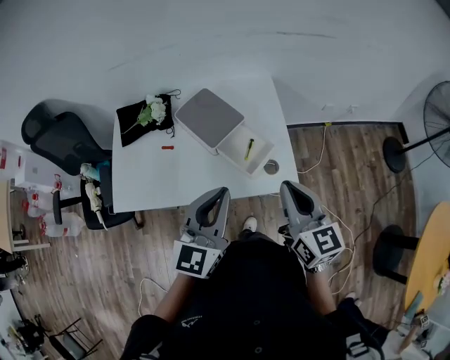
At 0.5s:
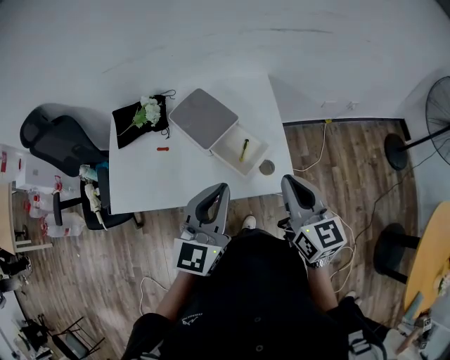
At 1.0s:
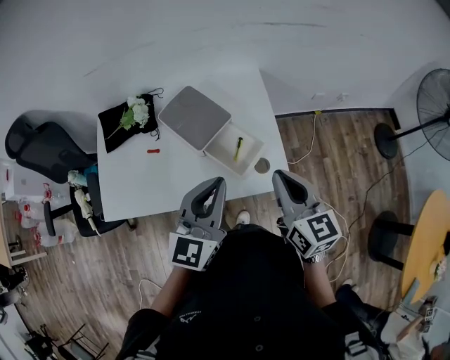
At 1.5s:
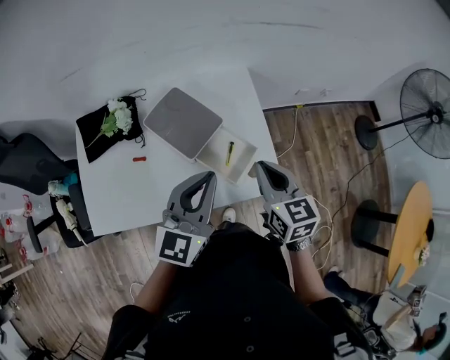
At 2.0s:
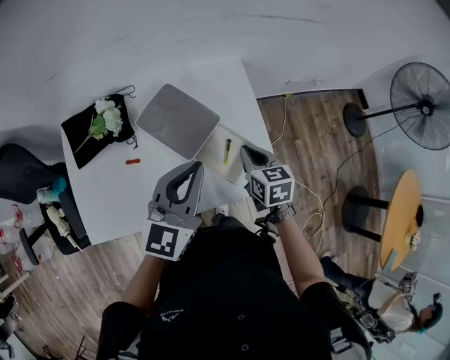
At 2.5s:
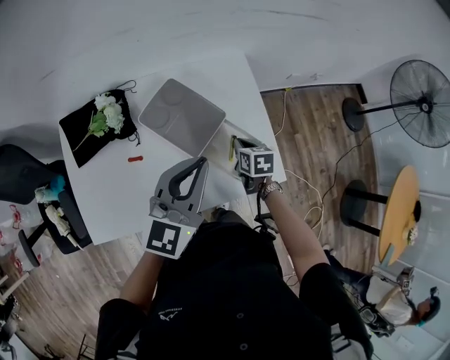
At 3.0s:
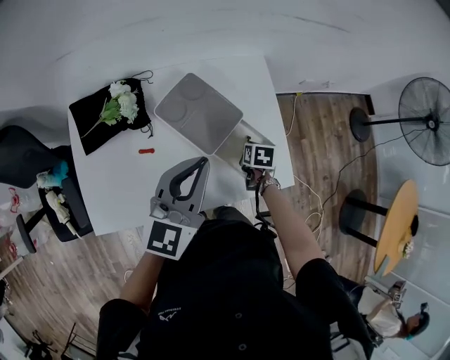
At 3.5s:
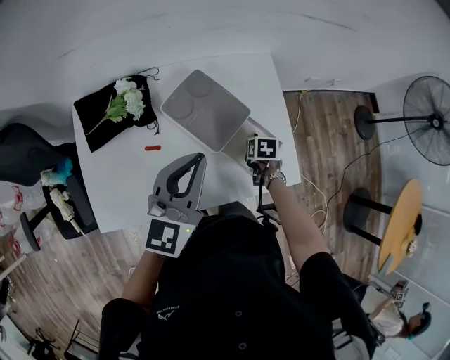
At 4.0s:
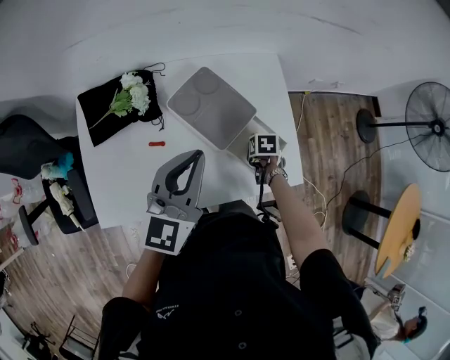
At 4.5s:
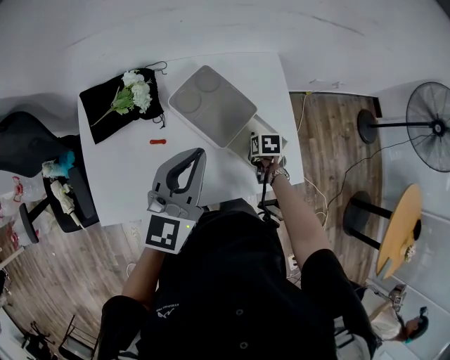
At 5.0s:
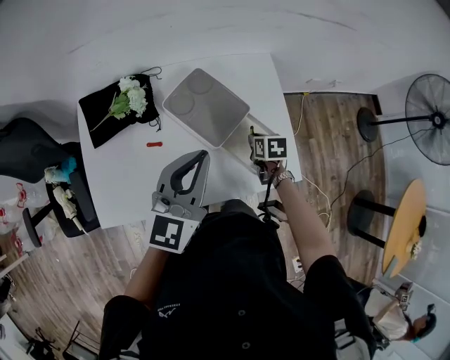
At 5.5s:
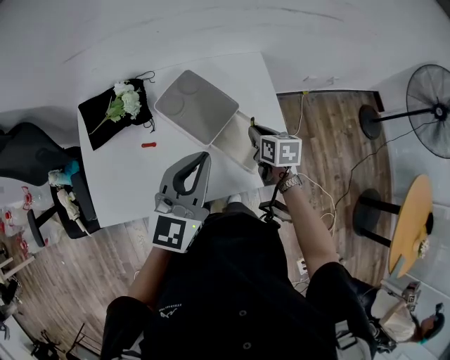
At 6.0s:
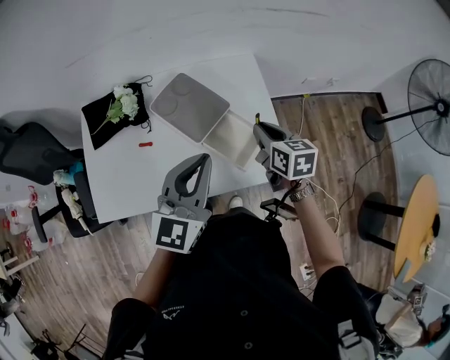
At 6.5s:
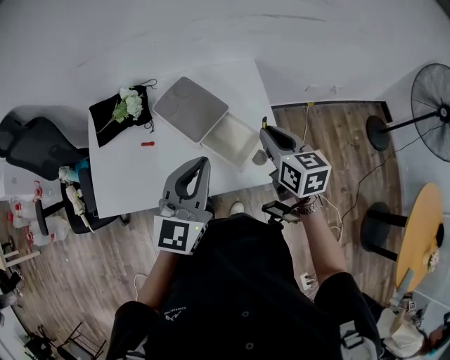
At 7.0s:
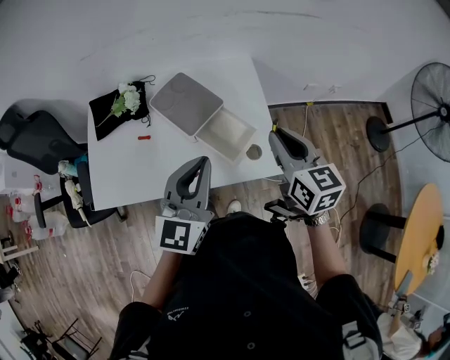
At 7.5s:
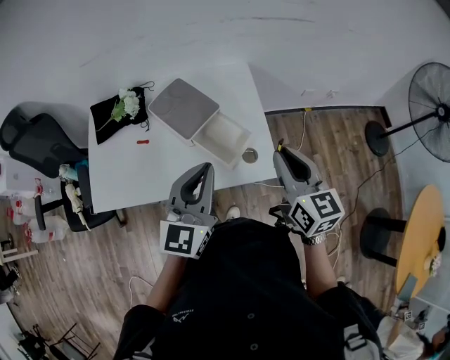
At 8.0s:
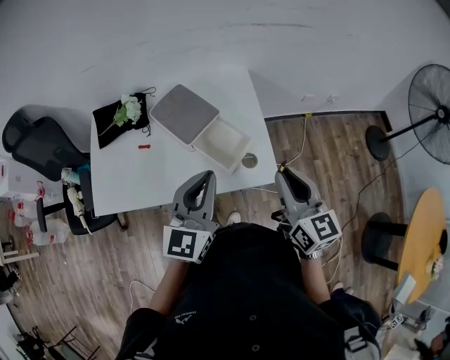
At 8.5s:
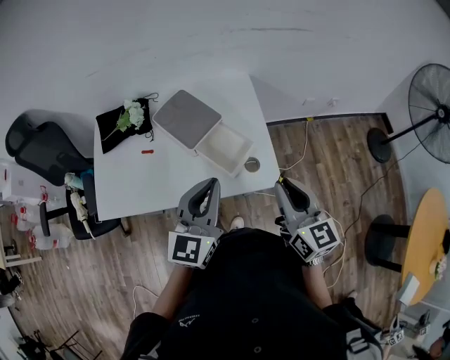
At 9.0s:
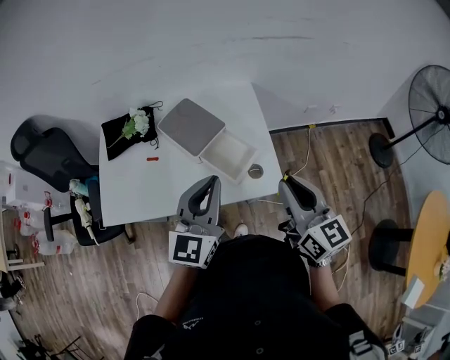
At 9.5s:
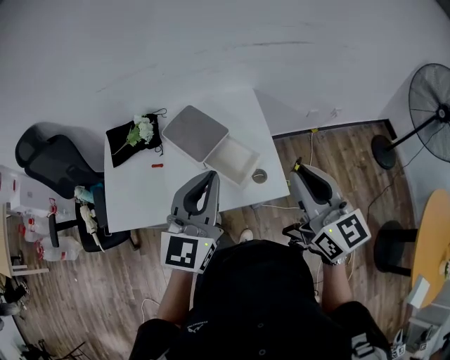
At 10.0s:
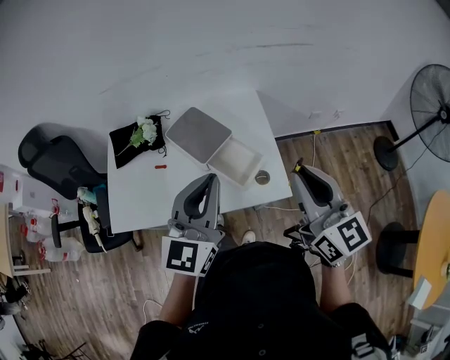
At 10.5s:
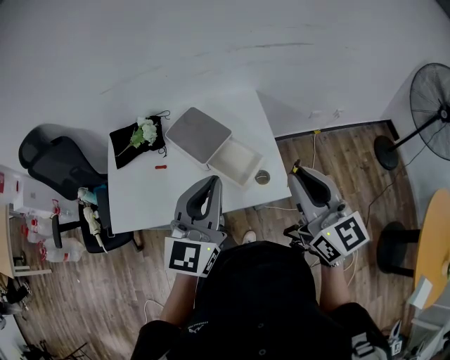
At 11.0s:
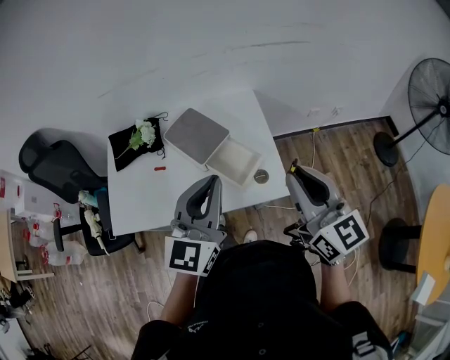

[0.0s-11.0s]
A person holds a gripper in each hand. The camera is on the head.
0.0s to 2.0s: The right gripper is displaced forward and downward by roughly 25 cm, and angles its fingers downward, by approximately 30 degrees; the left gripper goes some 20 cm forward.
2.0s to 3.5s: The left gripper moves to the left, roughly 10 cm, while the right gripper goes about 20 cm downward, tips its fingers downward by about 30 degrees, and opens up.
3.5s to 5.5s: The left gripper changes place by some 5 cm; the right gripper moves upward, some 15 cm, and turns by roughly 30 degrees.
5.5s to 7.5s: The right gripper goes roughly 30 cm upward, backward and to the right, and angles its fingers upward, by approximately 30 degrees. The left gripper moves backward and to the right, about 15 cm.
7.5s to 9.0s: The right gripper changes place by roughly 5 cm.
9.0s to 11.0s: The grippers both shift upward by roughly 5 cm.

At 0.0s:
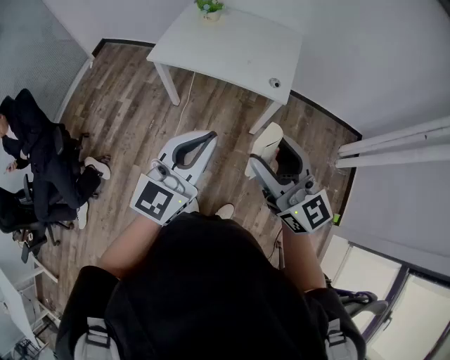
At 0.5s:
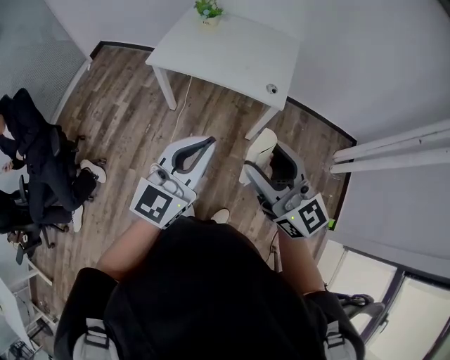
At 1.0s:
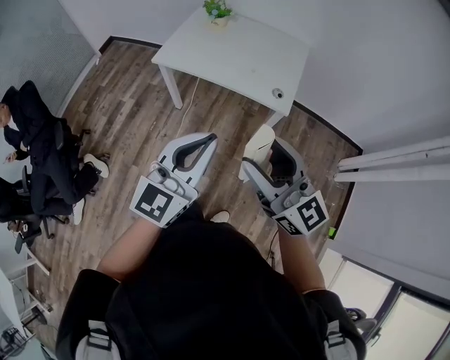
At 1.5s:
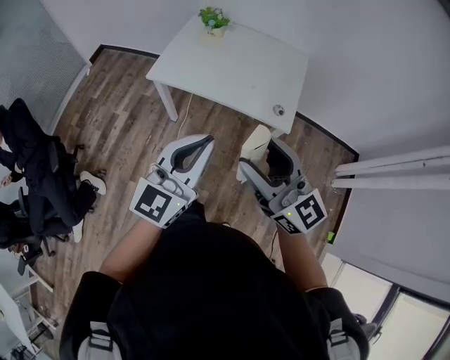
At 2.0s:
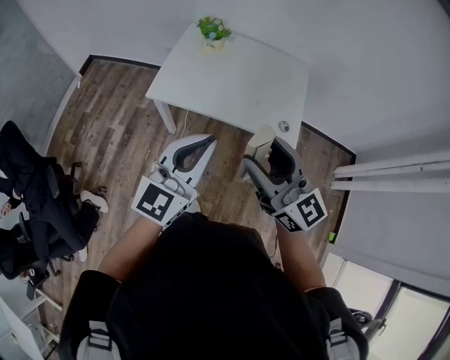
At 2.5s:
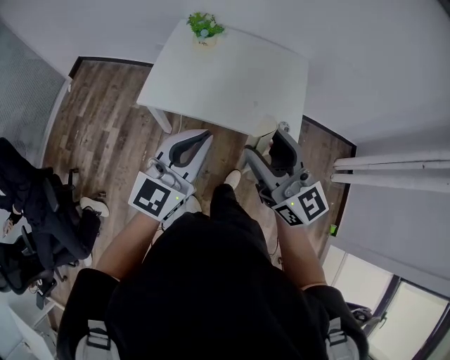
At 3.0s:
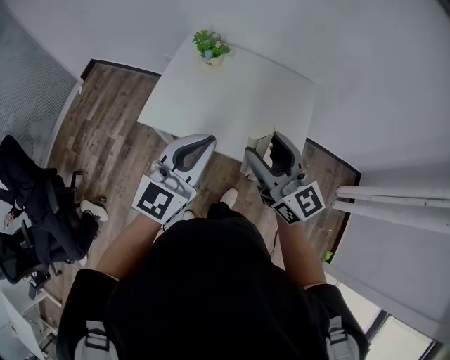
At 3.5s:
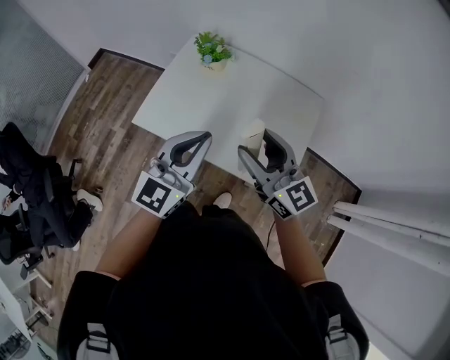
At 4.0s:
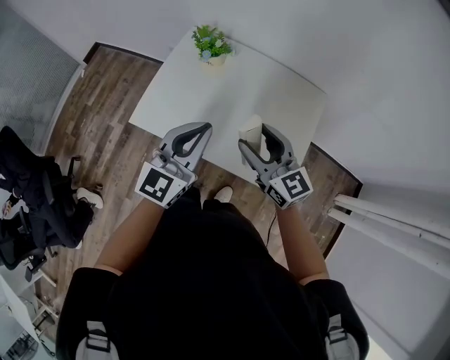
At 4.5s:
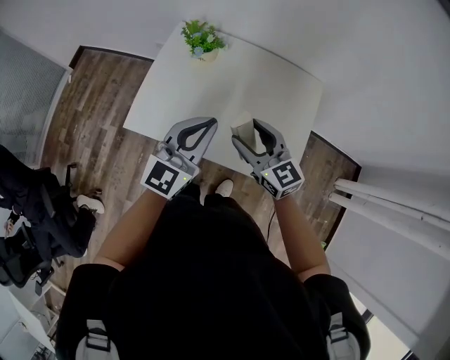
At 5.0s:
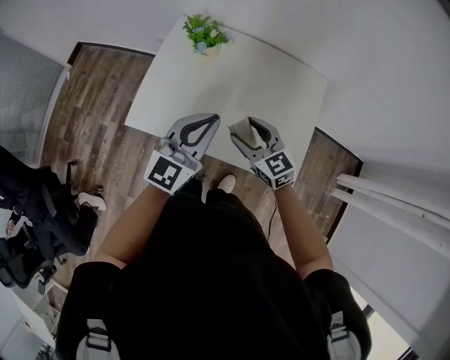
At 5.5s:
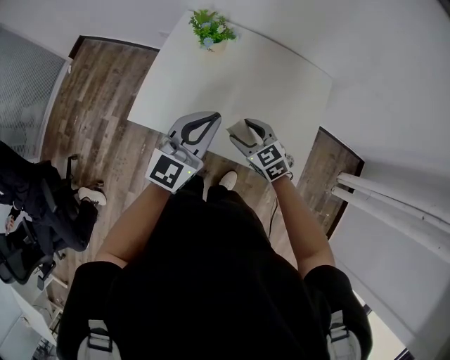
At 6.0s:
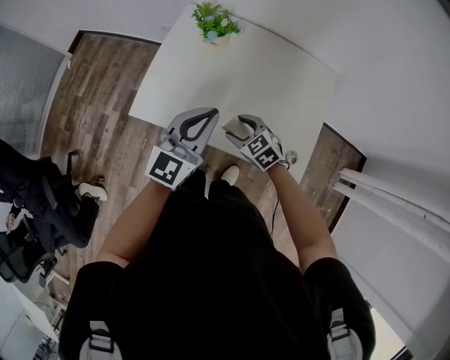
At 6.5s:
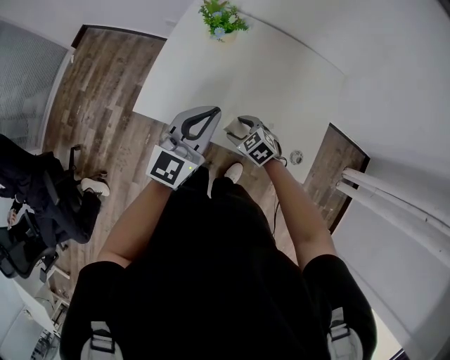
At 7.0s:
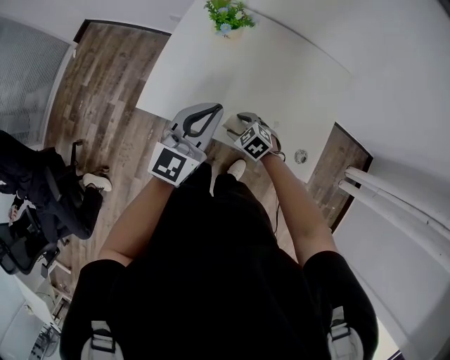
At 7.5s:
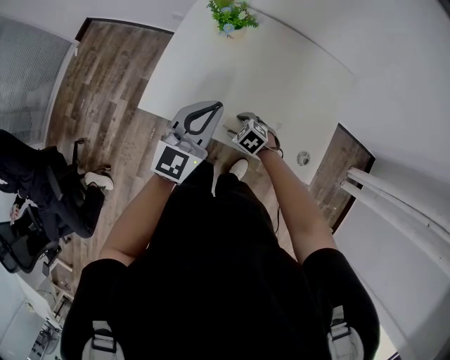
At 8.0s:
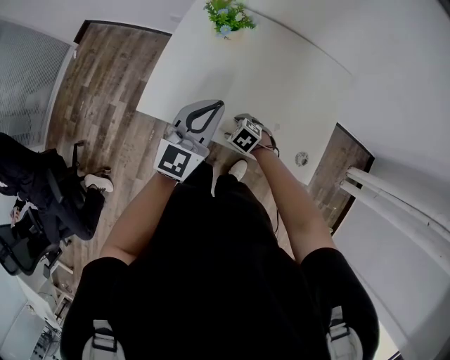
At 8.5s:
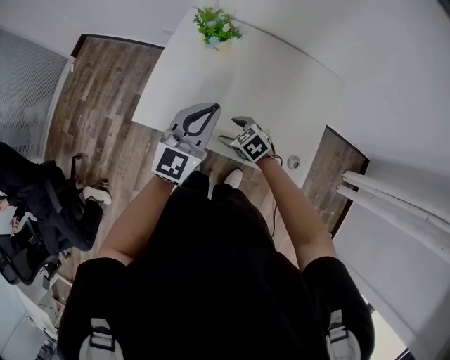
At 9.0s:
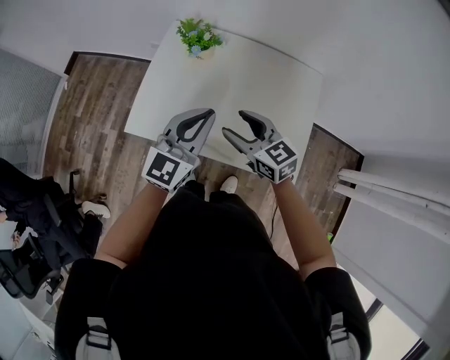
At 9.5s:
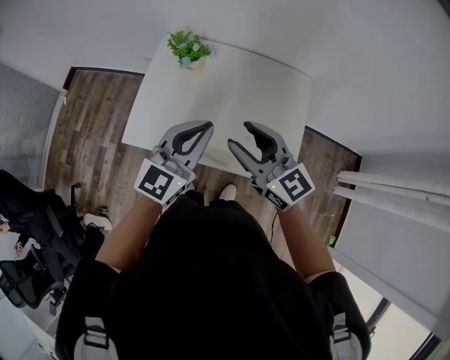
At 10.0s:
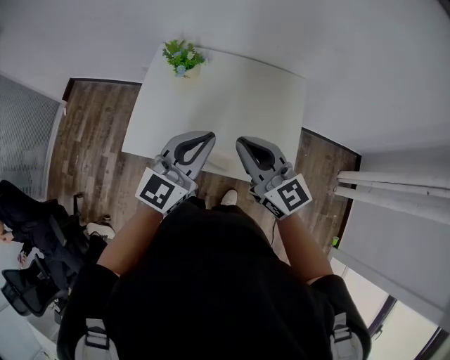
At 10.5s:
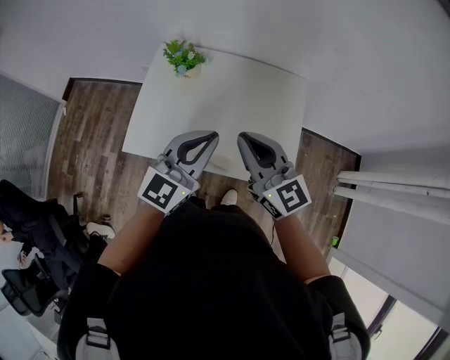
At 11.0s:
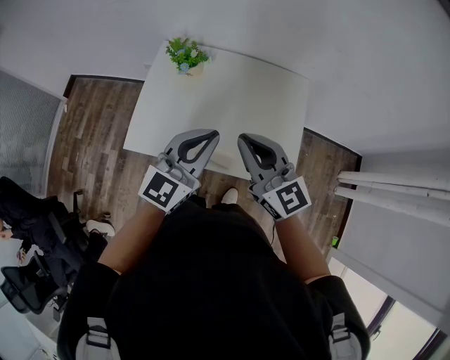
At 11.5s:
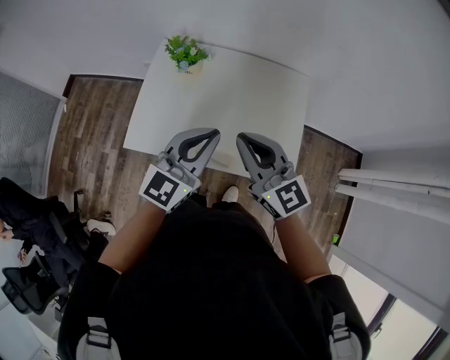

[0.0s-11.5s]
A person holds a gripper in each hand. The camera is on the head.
0.0s to 2.0s: The grippers both shift forward and to the left by roughly 25 cm.
2.0s to 4.0s: The left gripper shifts roughly 30 cm forward. Meanwhile the right gripper travels forward and downward by approximately 35 cm.
4.0s to 6.0s: The left gripper moves downward, approximately 5 cm. Meanwhile the right gripper travels downward by some 25 cm, and tilts its fingers roughly 40 degrees downward.
6.0s to 7.5s: The right gripper goes about 10 cm downward.
7.5s to 9.5s: The right gripper goes about 40 cm upward, and angles its fingers upward, by roughly 60 degrees, while the left gripper heads upward, to the right and backward, covering roughly 15 cm.
9.5s to 11.5s: The right gripper closes up.

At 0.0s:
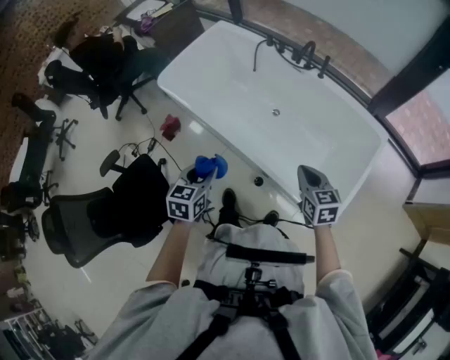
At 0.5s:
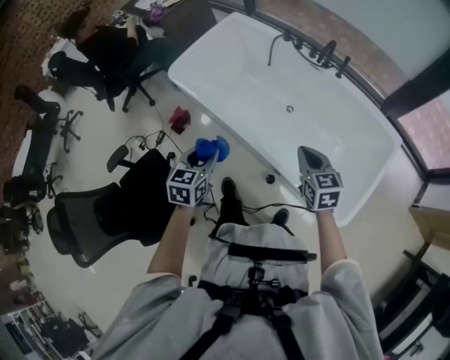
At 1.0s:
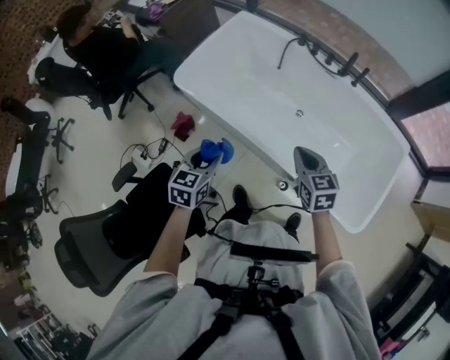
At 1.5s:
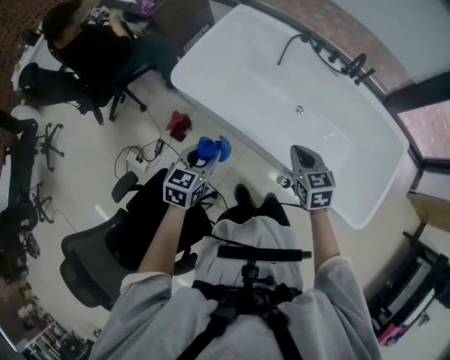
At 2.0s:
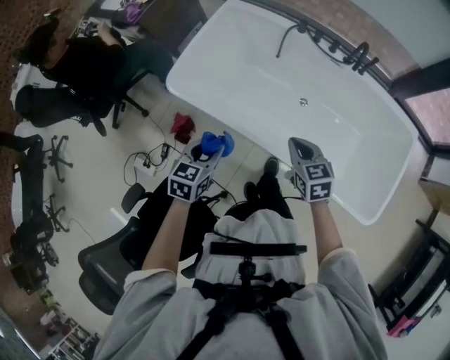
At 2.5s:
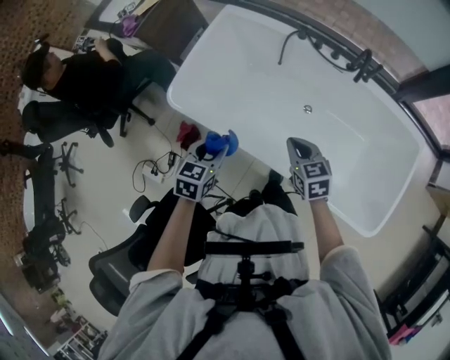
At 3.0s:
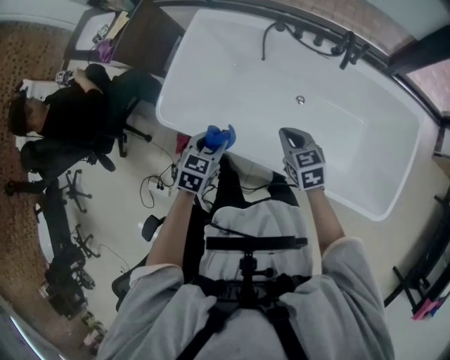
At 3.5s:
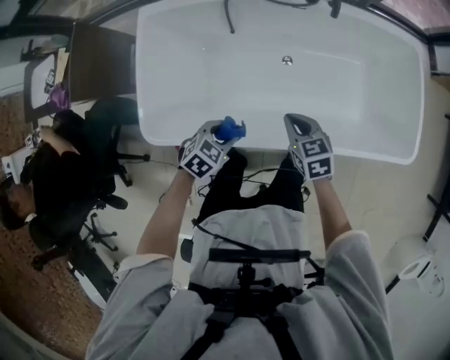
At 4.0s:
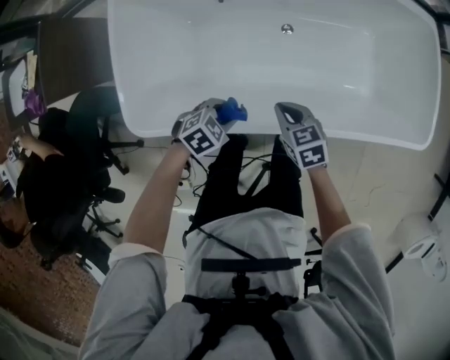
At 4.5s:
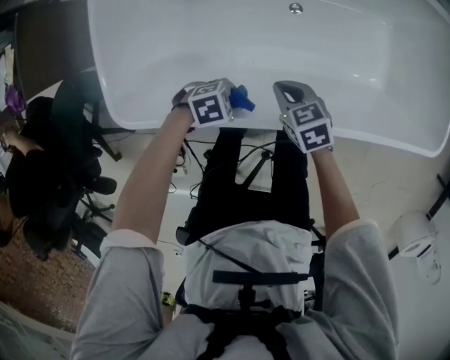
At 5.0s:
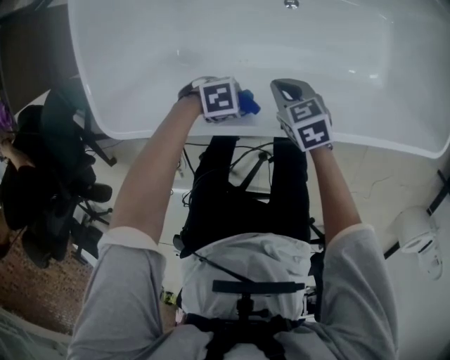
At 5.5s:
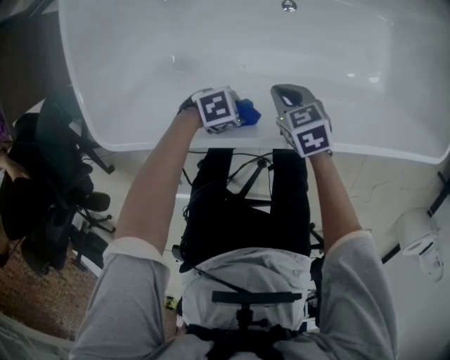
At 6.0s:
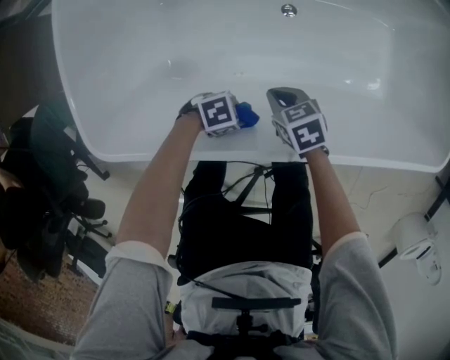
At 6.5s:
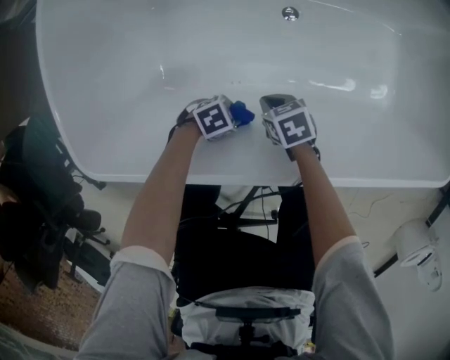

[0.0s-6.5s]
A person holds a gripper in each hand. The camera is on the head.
0.0s to 2.0s: The left gripper goes roughly 35 cm forward and to the left. The right gripper travels to the left and forward by approximately 40 cm.
2.0s to 4.5s: Both grippers travel together downward, roughly 35 cm. The left gripper turns by approximately 100 degrees, while the right gripper swivels about 30 degrees.
4.5s to 6.5s: The grippers both shift downward by some 20 cm.
